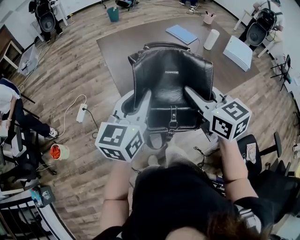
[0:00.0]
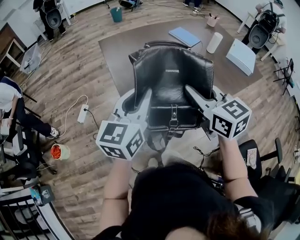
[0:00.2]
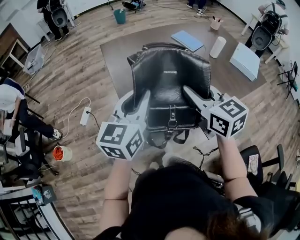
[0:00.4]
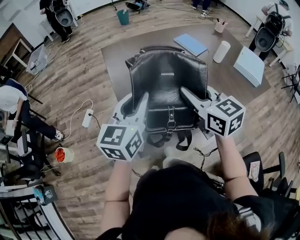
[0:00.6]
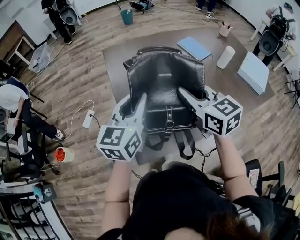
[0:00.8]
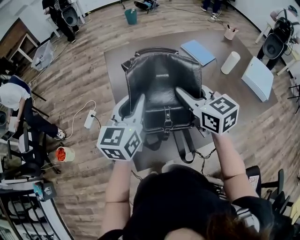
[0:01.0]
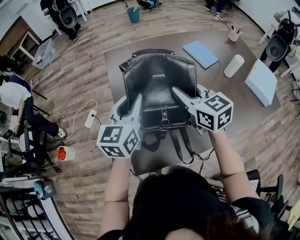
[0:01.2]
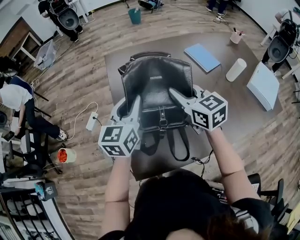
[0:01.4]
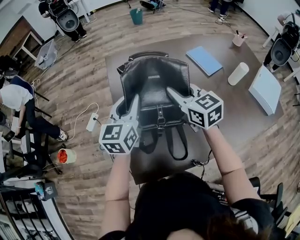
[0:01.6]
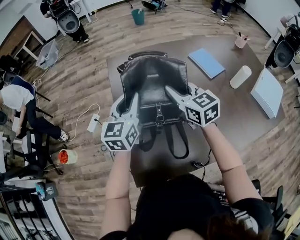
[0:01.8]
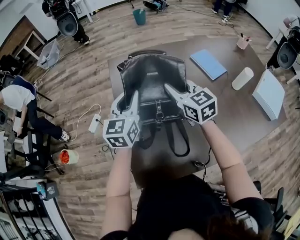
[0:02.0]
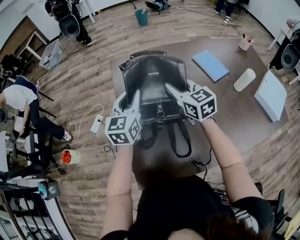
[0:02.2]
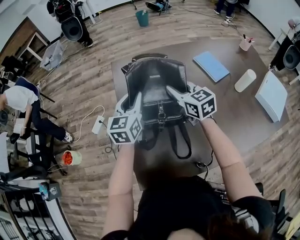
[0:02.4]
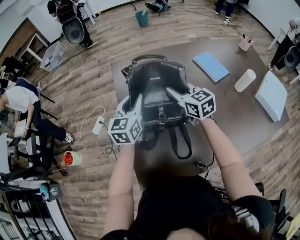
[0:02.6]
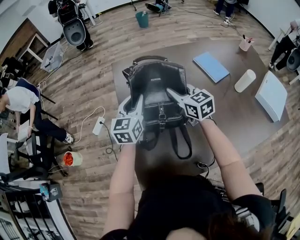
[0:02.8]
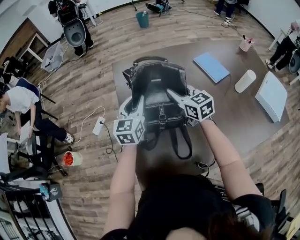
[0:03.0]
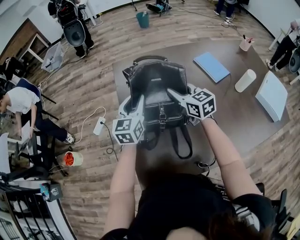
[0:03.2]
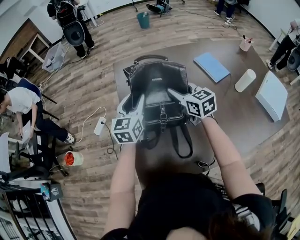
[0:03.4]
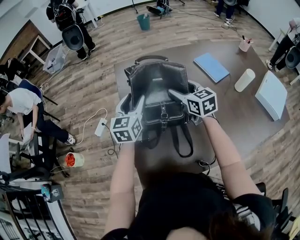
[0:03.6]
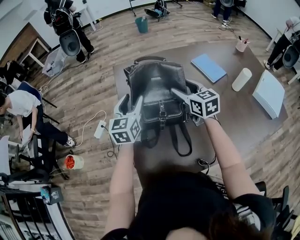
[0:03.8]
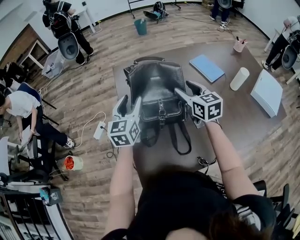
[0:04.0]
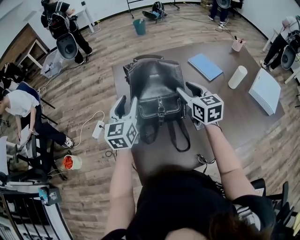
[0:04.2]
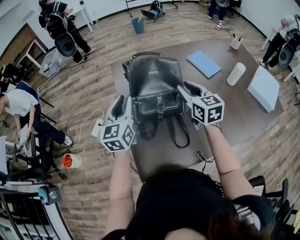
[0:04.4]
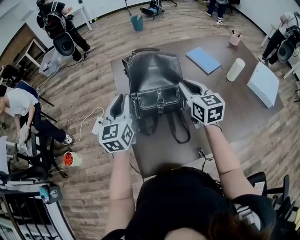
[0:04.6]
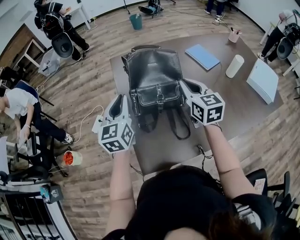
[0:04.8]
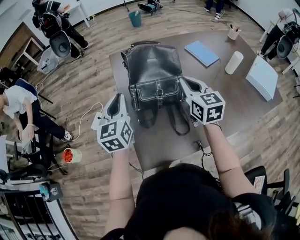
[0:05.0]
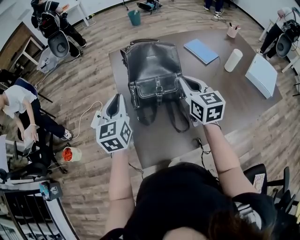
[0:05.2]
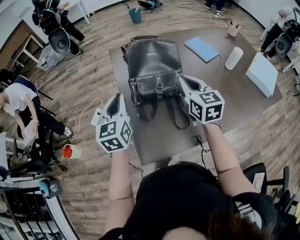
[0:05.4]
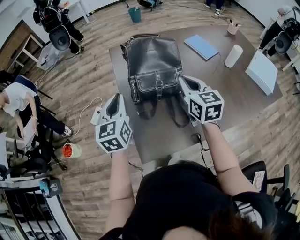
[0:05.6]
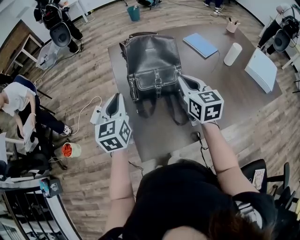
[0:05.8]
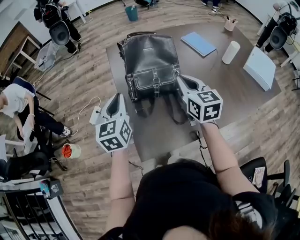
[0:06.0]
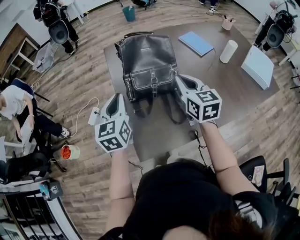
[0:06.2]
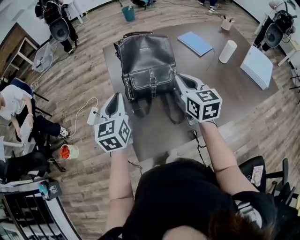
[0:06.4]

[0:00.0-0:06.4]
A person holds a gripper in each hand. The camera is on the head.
0:00.0 to 0:01.6: The two grippers go about 30 cm forward. The left gripper changes its angle by about 20 degrees.
0:01.6 to 0:03.2: Both grippers travel together forward and downward, some 10 cm.
0:03.2 to 0:04.8: The left gripper heads backward, to the left and upward, covering approximately 15 cm, and opens, then closes again, while the right gripper heads backward and upward, covering about 15 cm, turns by some 20 degrees, and opens and closes again.
0:04.8 to 0:06.4: Both grippers travel together backward, roughly 5 cm.

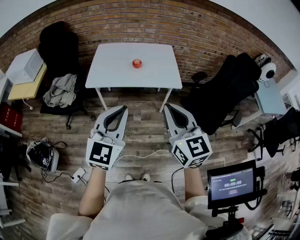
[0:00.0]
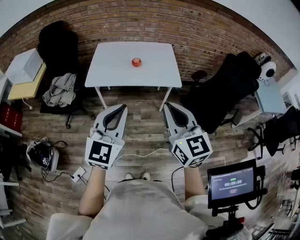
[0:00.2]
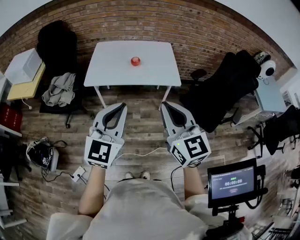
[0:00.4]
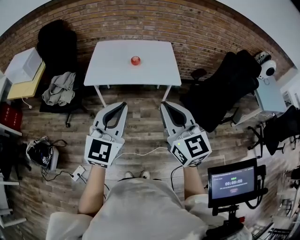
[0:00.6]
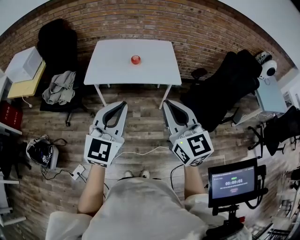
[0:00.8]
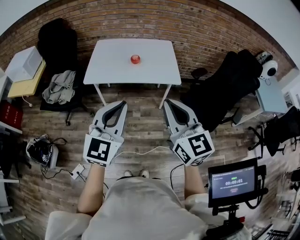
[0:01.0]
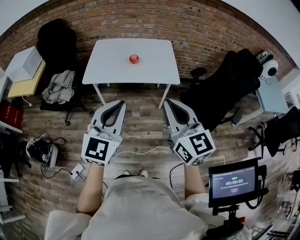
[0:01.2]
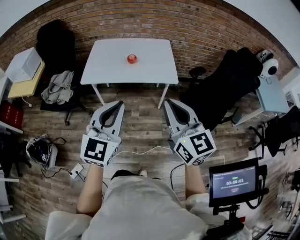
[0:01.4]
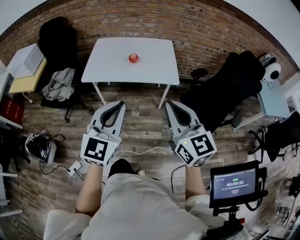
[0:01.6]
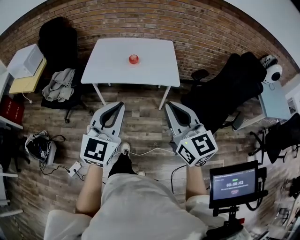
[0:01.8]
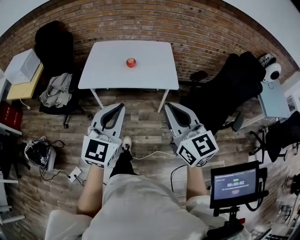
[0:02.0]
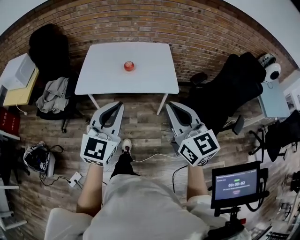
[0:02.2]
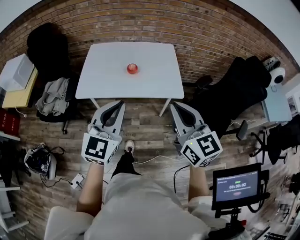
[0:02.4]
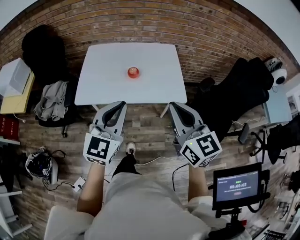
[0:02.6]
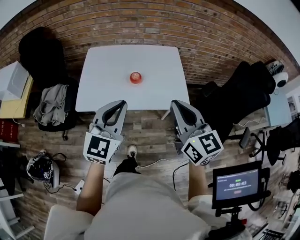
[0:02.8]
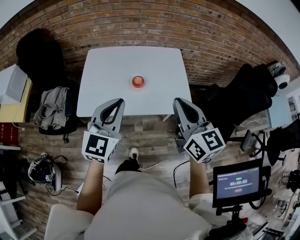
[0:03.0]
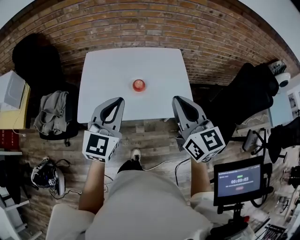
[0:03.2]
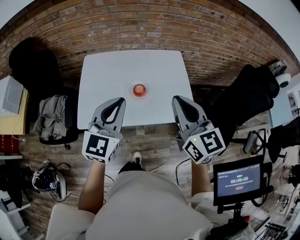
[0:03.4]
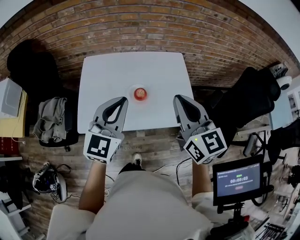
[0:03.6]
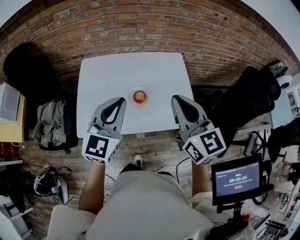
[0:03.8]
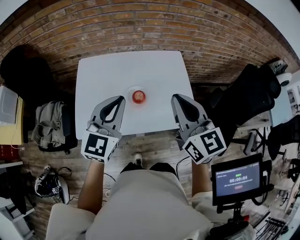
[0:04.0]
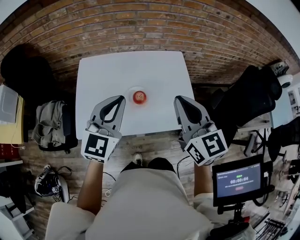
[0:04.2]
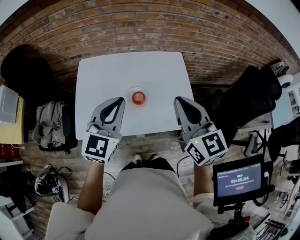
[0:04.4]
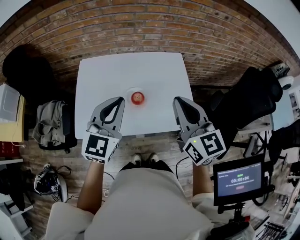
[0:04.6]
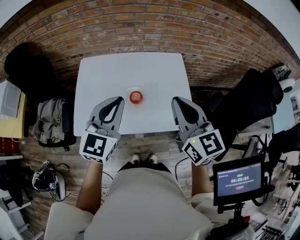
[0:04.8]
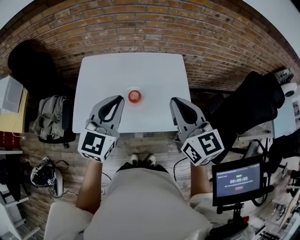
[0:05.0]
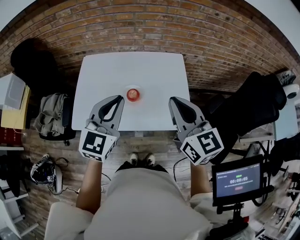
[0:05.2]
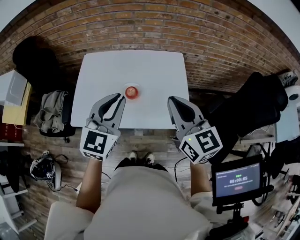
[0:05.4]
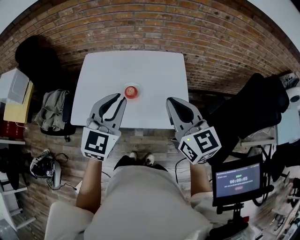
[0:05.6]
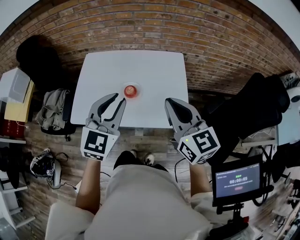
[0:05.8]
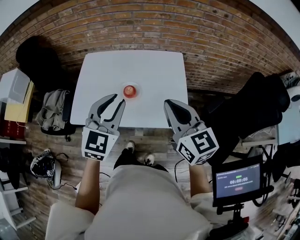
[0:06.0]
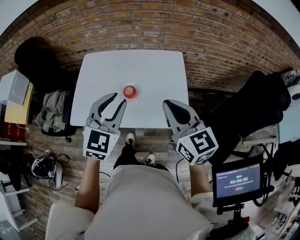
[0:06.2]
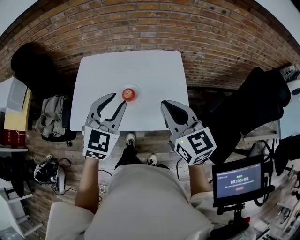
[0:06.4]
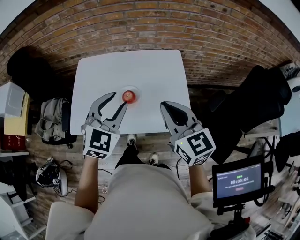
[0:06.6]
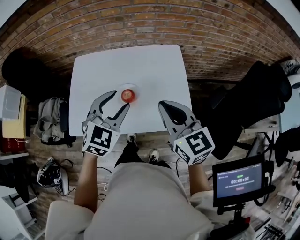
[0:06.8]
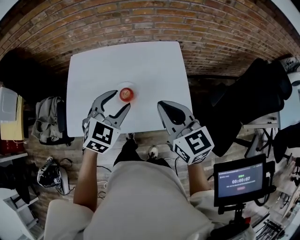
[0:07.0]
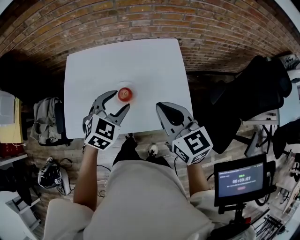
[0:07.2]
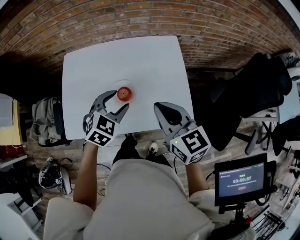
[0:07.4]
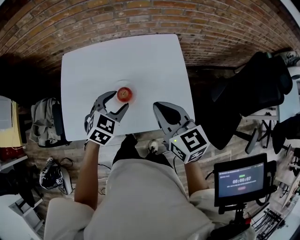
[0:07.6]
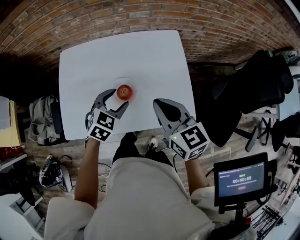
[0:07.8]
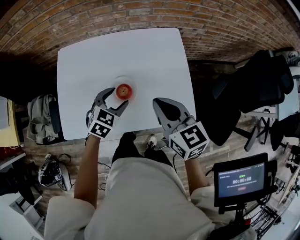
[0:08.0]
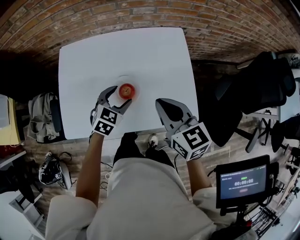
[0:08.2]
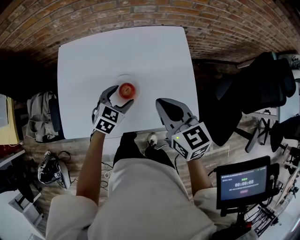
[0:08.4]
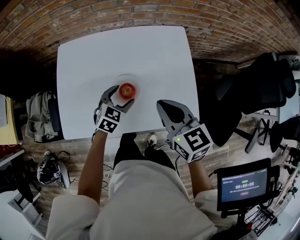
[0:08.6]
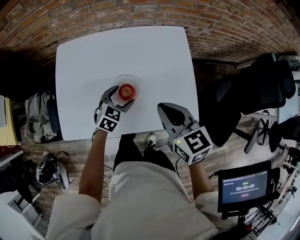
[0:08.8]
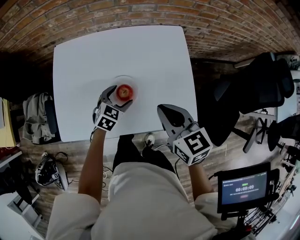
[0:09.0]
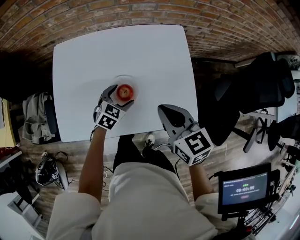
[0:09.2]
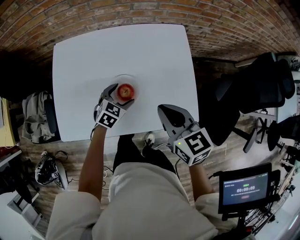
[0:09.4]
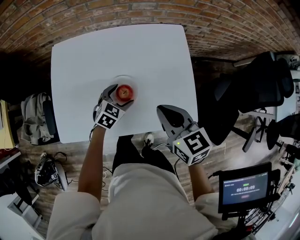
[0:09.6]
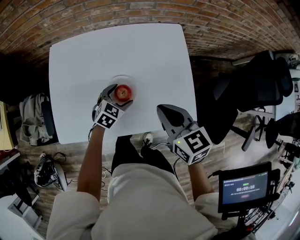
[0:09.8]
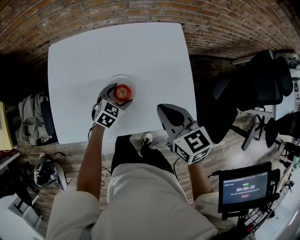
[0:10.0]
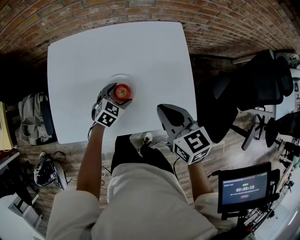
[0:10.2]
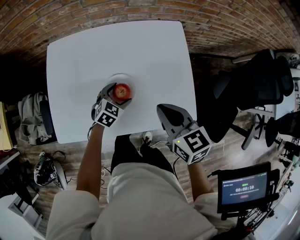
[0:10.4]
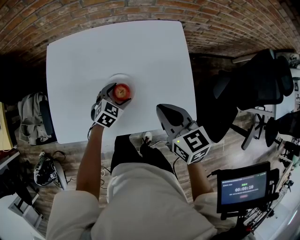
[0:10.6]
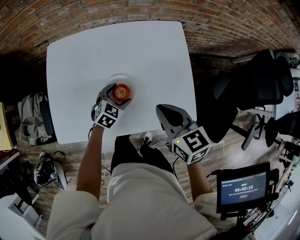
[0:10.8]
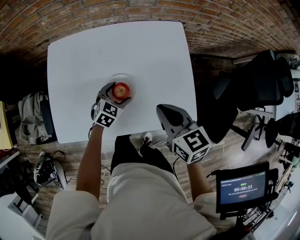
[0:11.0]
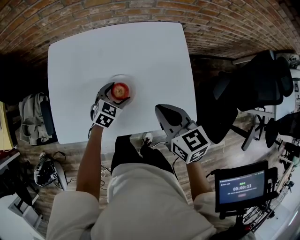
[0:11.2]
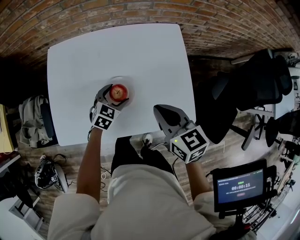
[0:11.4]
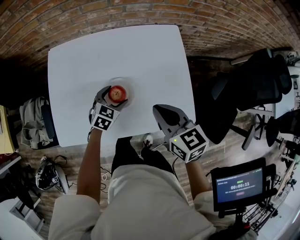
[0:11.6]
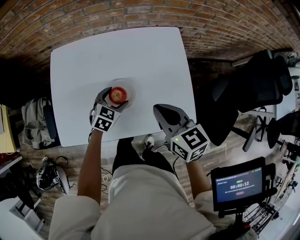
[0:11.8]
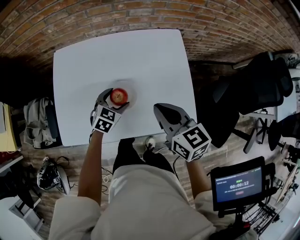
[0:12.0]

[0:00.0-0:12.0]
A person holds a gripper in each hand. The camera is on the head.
0:00.0 to 0:01.6: The two grippers go some 5 cm to the right.
0:01.6 to 0:03.0: The grippers both shift forward by about 30 cm.
0:03.0 to 0:04.4: The two grippers go approximately 15 cm forward.
0:04.4 to 0:06.0: The left gripper travels to the right and backward by approximately 10 cm; the right gripper goes roughly 10 cm to the right.
0:06.0 to 0:07.6: The right gripper shifts approximately 15 cm downward and forward. The left gripper shifts roughly 20 cm downward and forward, turns by some 30 degrees, and opens up.
0:07.6 to 0:09.0: The left gripper travels downward by some 15 cm, while the right gripper is displaced downward by approximately 5 cm.
0:09.0 to 0:12.0: The grippers stay close to where they were, moving slightly.

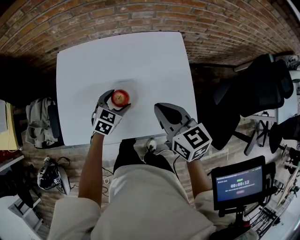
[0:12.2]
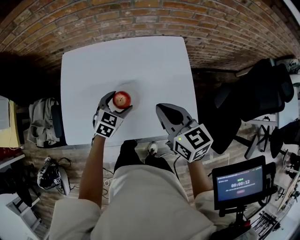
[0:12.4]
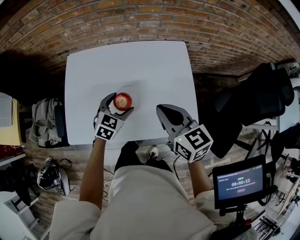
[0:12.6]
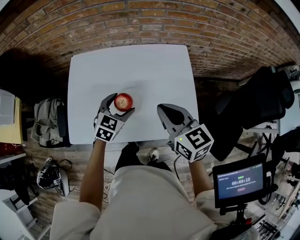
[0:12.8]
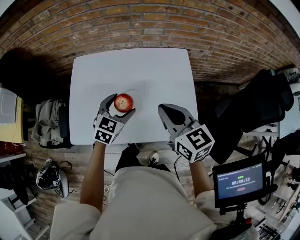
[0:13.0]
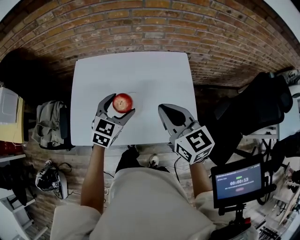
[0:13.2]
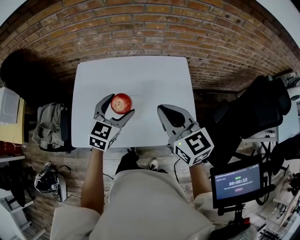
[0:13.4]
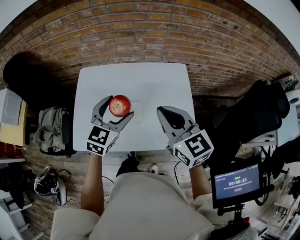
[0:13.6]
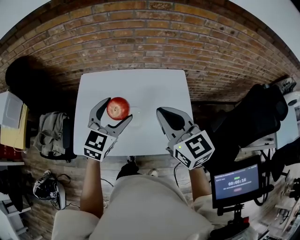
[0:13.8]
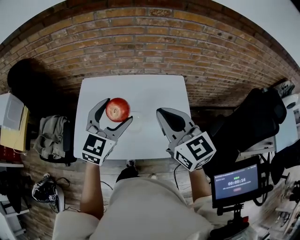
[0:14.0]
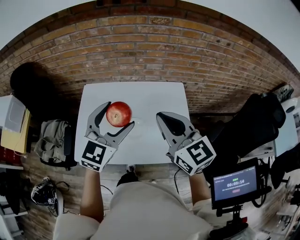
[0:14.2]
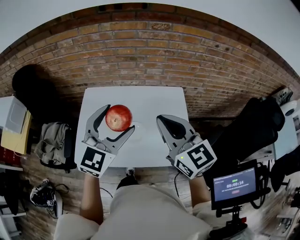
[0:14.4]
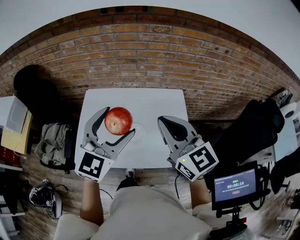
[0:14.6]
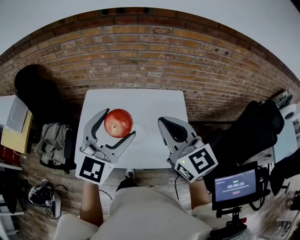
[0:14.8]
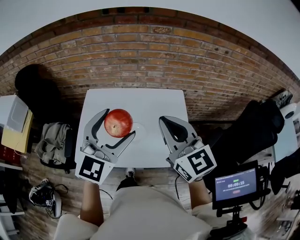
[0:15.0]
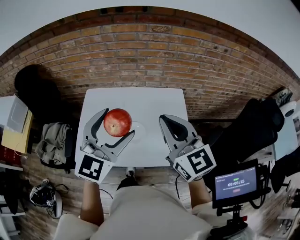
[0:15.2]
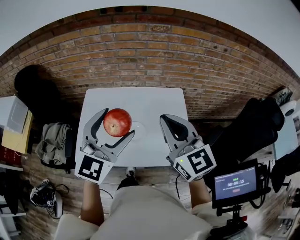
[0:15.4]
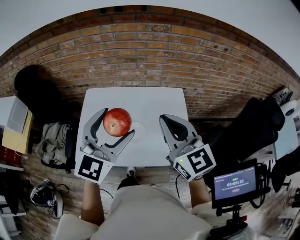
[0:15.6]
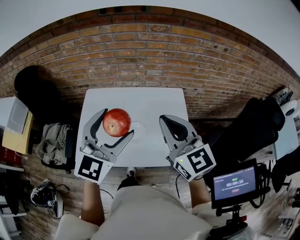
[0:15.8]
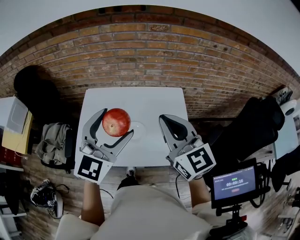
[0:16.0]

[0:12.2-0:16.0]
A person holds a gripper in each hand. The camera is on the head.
0:12.2 to 0:13.4: The left gripper shifts about 20 cm upward; the right gripper goes about 10 cm upward.
0:13.4 to 0:14.8: The right gripper shifts approximately 10 cm upward, while the left gripper moves upward, approximately 20 cm, and swivels some 30 degrees.
0:14.8 to 0:16.0: The two grippers keep their place.

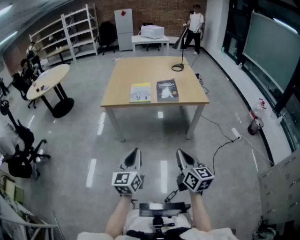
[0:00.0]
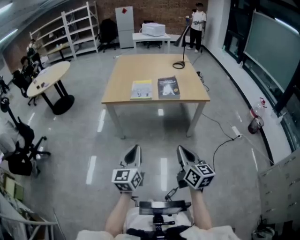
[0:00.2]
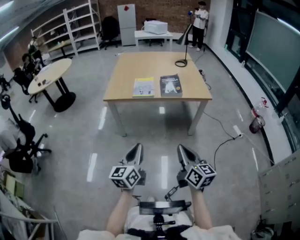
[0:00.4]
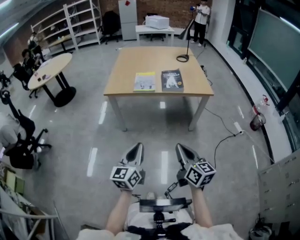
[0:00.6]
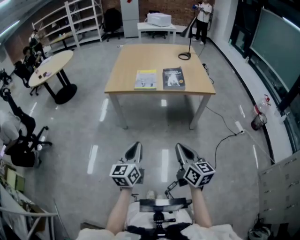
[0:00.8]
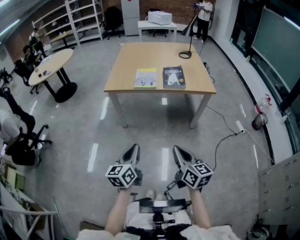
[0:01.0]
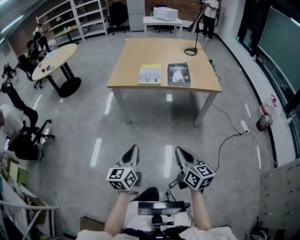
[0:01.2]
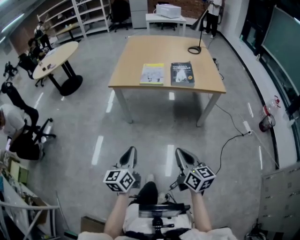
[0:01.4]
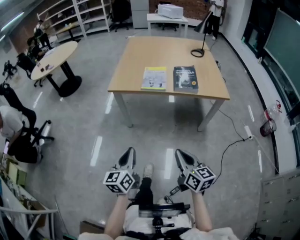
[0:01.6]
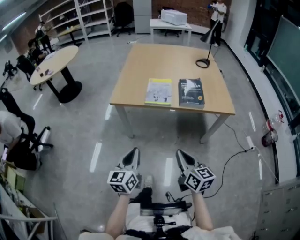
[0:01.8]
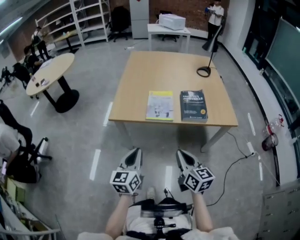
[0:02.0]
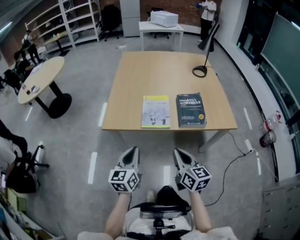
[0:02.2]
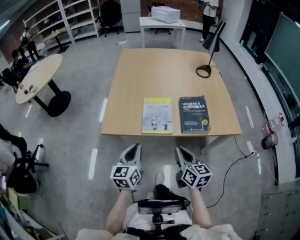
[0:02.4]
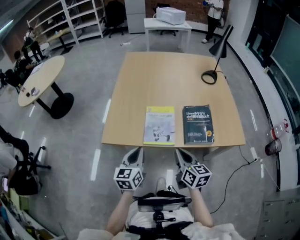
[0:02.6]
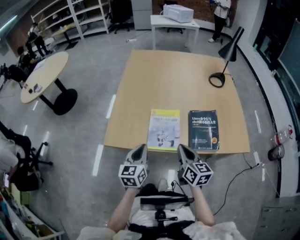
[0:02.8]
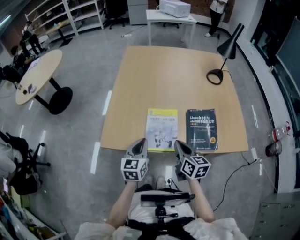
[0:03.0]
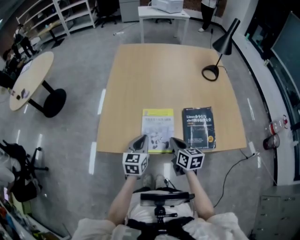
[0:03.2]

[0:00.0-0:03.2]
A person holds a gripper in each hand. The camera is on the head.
0:00.0 to 0:01.6: The left gripper travels downward, forward and to the left by about 15 cm, while the right gripper shifts roughly 15 cm forward, downward and to the left.
0:01.6 to 0:03.2: The two grippers travel together, forward, about 60 cm. The left gripper turns by about 20 degrees.
